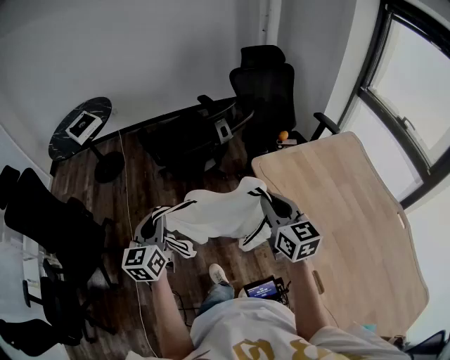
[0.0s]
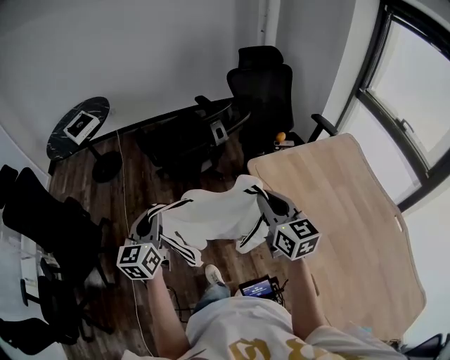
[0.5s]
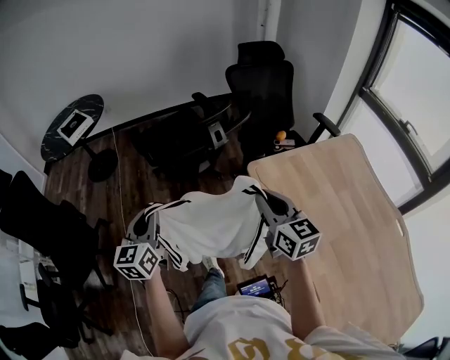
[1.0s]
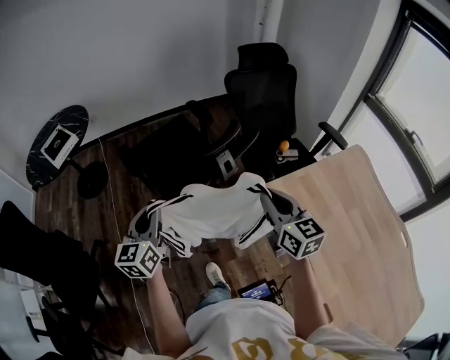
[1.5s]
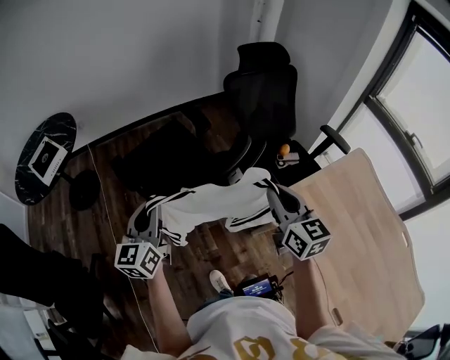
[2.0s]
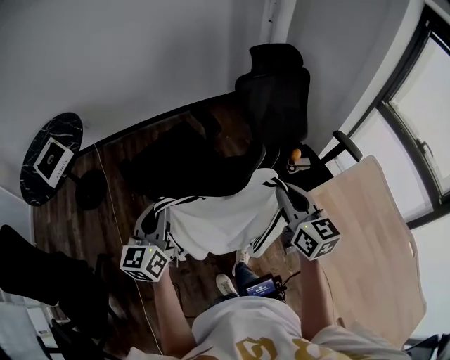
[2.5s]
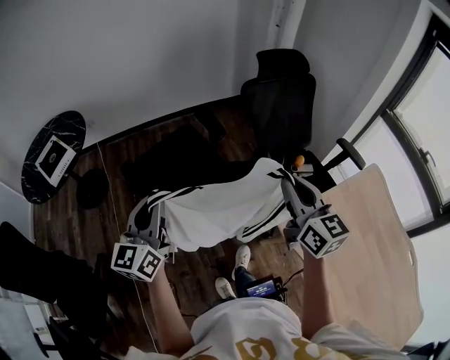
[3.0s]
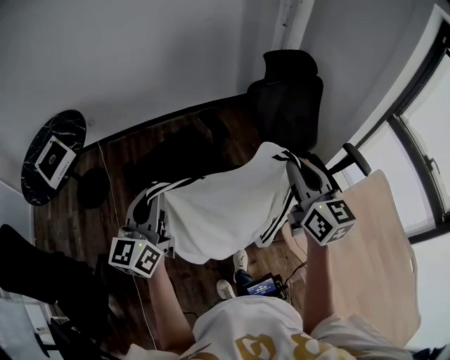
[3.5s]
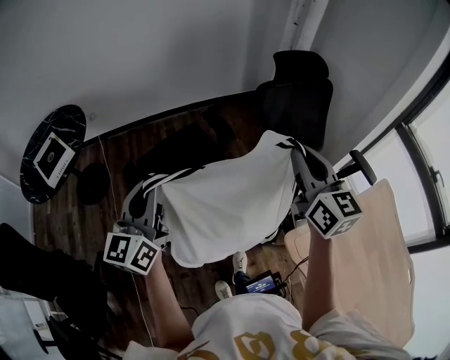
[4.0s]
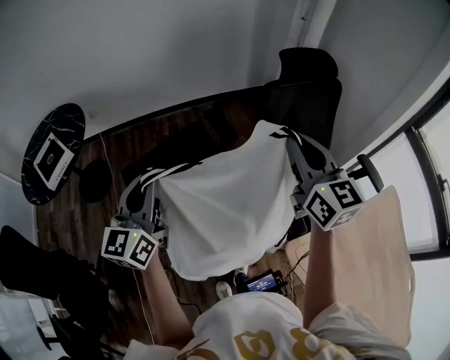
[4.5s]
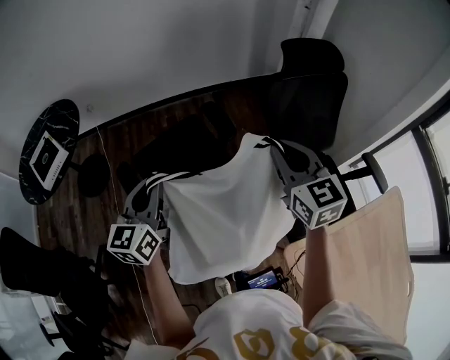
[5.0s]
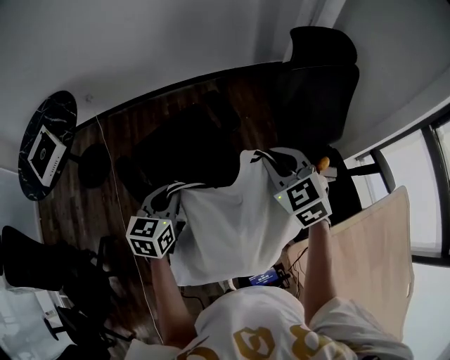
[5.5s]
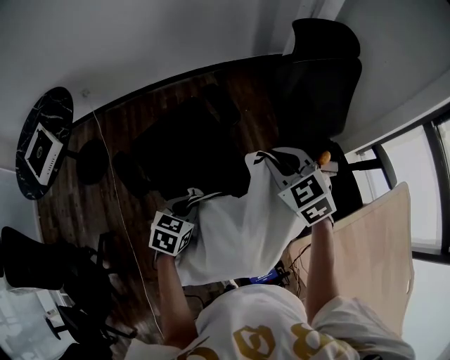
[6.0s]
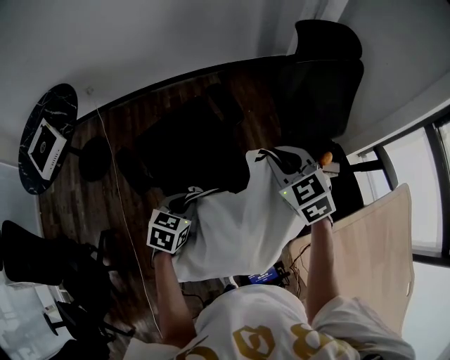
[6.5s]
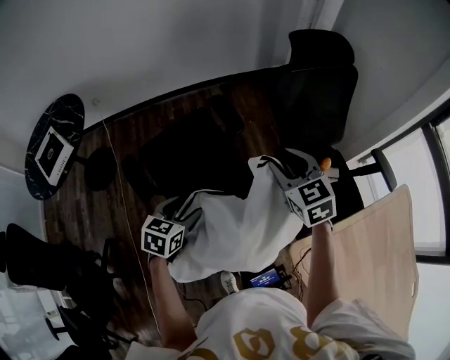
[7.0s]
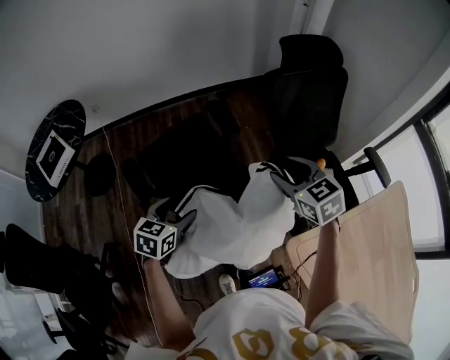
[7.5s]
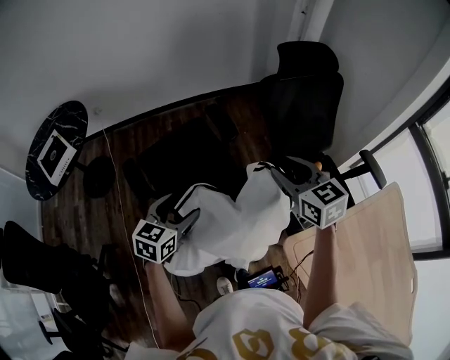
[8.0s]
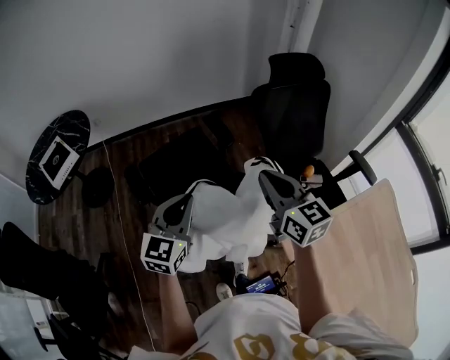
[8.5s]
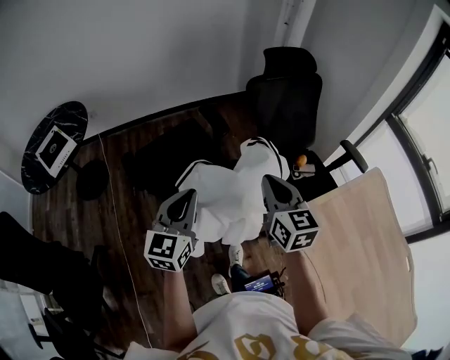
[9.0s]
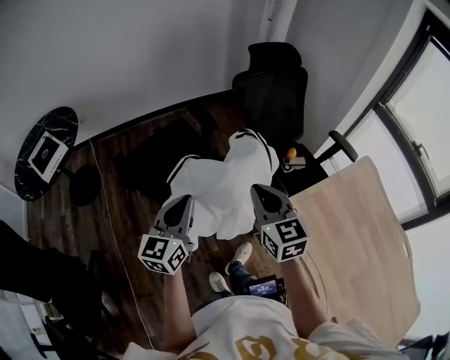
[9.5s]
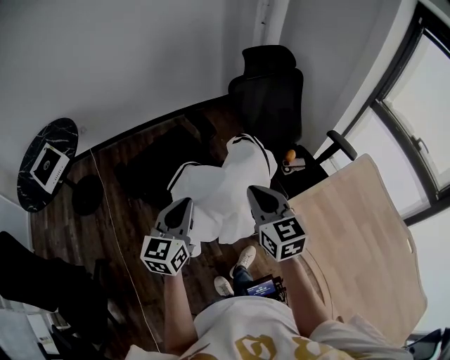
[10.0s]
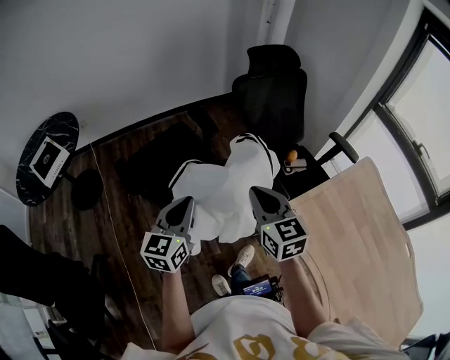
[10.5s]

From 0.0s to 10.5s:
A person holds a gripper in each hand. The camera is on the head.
From 0.0s to 2.0s: The two grippers go about 35 cm forward.
From 2.0s to 4.0s: Both grippers move forward and upward, approximately 20 cm.
From 4.0s to 6.5s: The right gripper is displaced downward and forward by approximately 25 cm, and tips its fingers downward by some 30 degrees. Meanwhile the left gripper is displaced downward by about 30 cm, and angles its fingers downward, by approximately 50 degrees.
From 6.5s to 8.5s: The left gripper travels upward and backward by roughly 20 cm, tips its fingers upward by about 40 degrees, and opens, then closes once more. The right gripper moves backward and upward, some 20 cm, turns by roughly 40 degrees, and opens, then closes again.
From 8.5s to 10.5s: The left gripper heads backward, covering some 10 cm. The right gripper moves backward, roughly 10 cm.

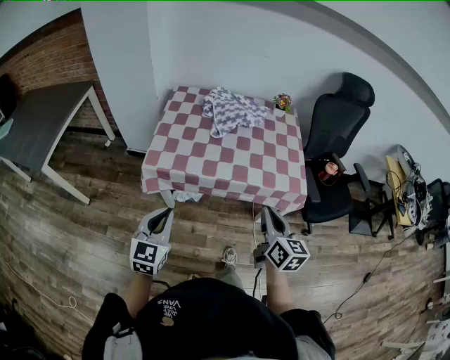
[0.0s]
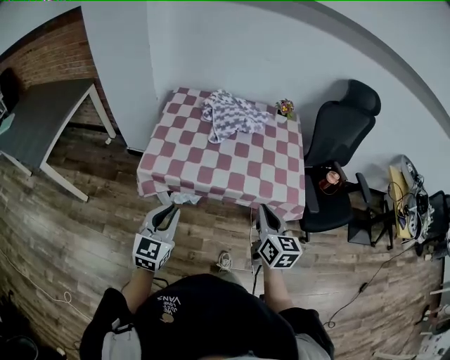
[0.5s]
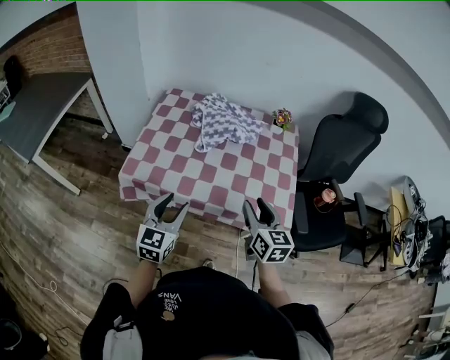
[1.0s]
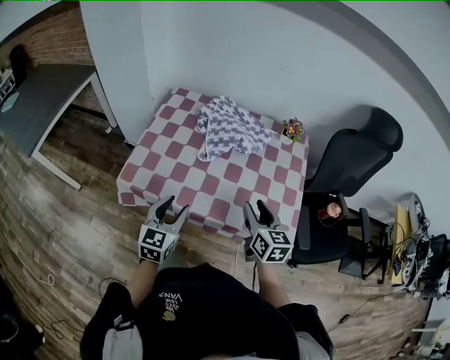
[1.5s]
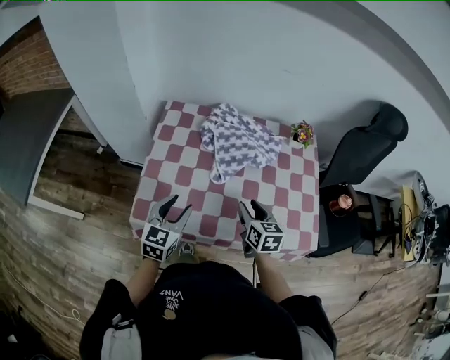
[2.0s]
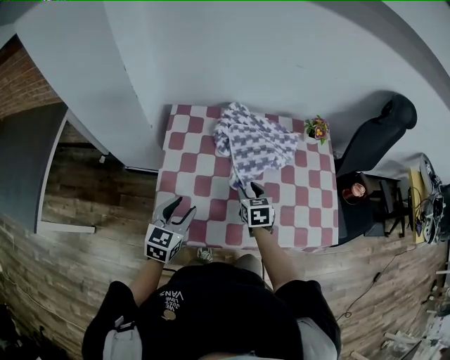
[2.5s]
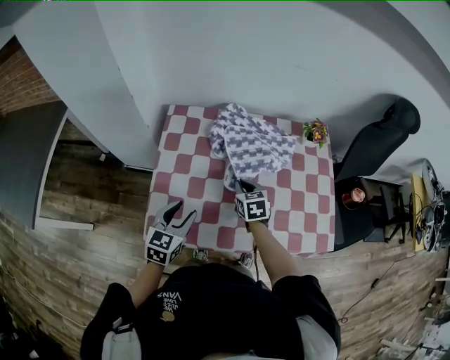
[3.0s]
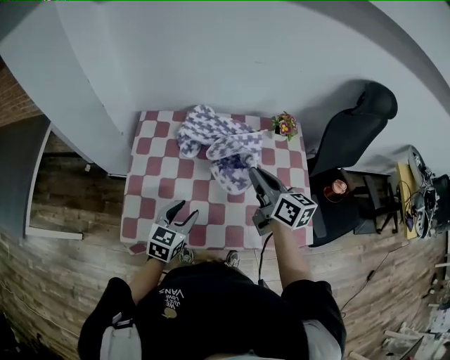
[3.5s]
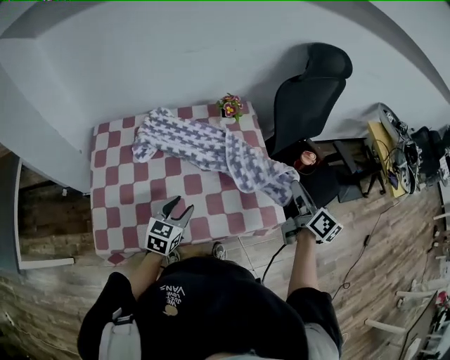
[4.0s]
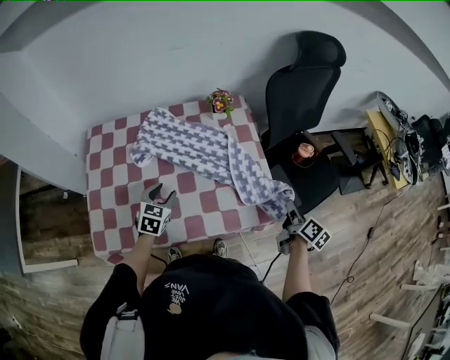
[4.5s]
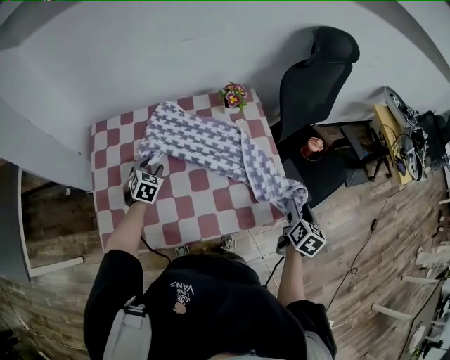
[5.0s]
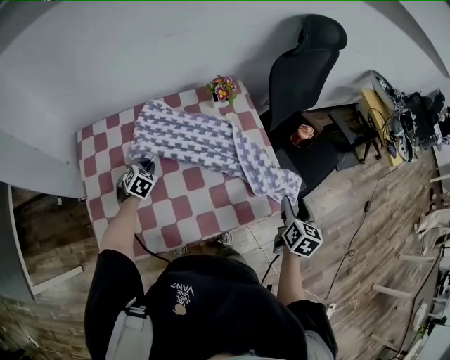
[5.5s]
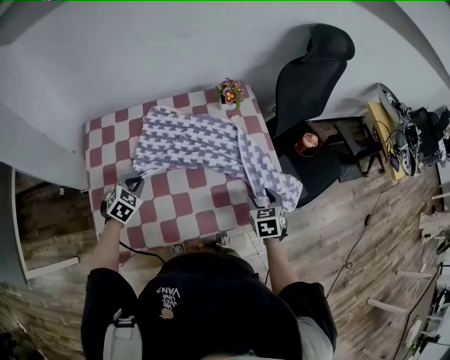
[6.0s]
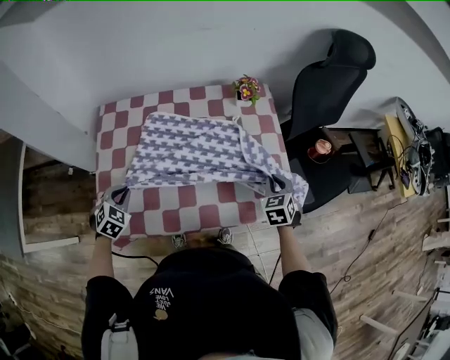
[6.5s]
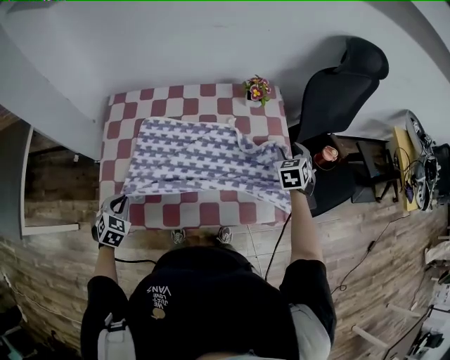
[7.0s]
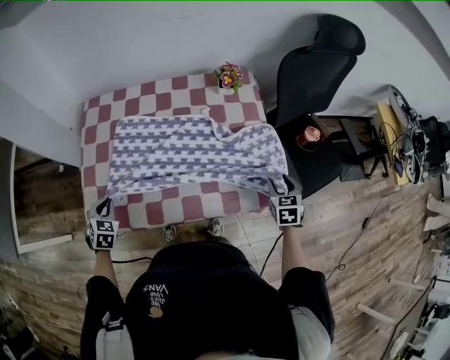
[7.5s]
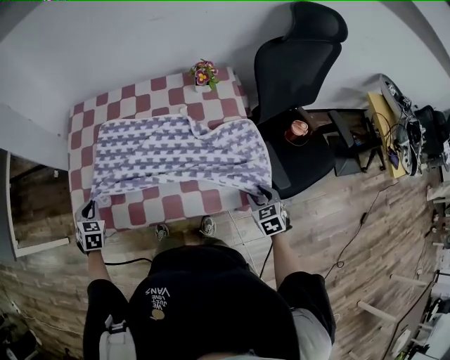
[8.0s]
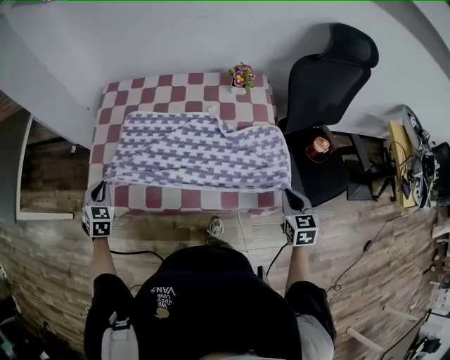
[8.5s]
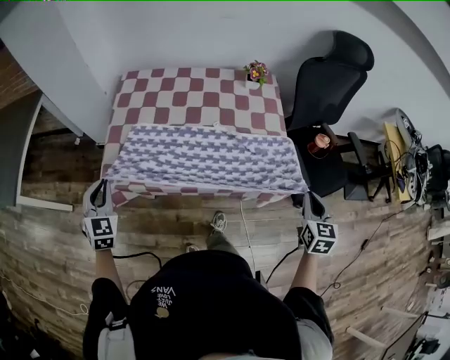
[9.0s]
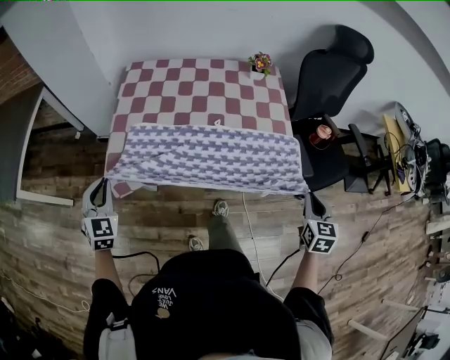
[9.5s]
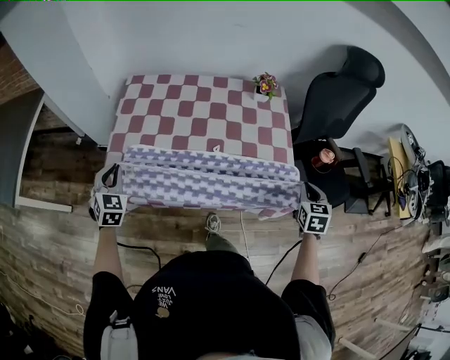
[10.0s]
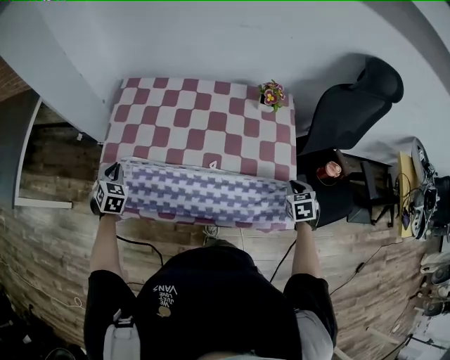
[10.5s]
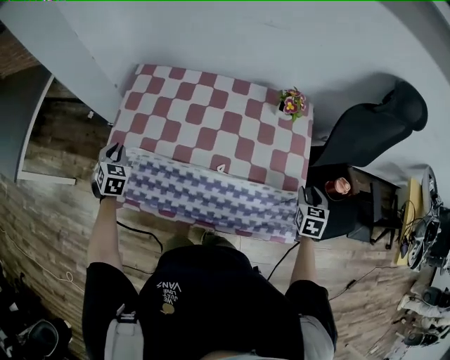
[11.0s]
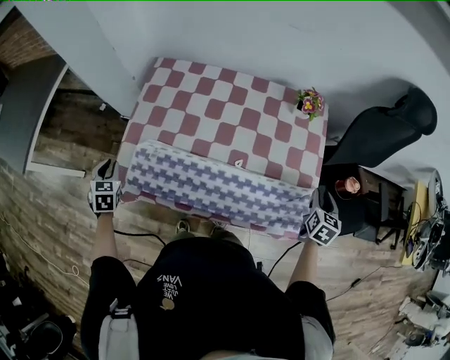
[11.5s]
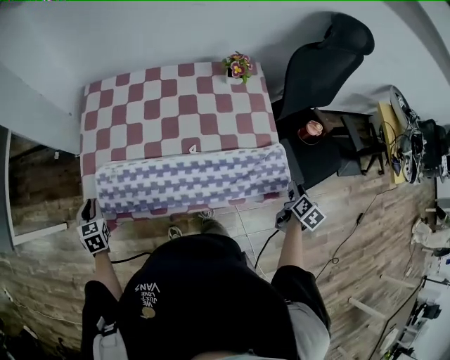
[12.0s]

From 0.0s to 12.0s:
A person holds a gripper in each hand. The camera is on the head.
From 0.0s to 2.0s: The two grippers go some 30 cm forward. The right gripper changes its angle by some 20 degrees, and opens. The left gripper opens its fingers.
From 2.0s to 4.0s: The right gripper heads to the right, covering about 35 cm, changes its angle by approximately 50 degrees, and closes its fingers. Meanwhile the left gripper travels to the right by roughly 20 cm, and changes its angle by about 20 degrees.
From 4.0s to 6.0s: The left gripper goes roughly 20 cm to the left, rotates about 40 degrees, and closes up; the right gripper swings up and down, about 20 cm each way, with 2 reversals, tilts its fingers some 40 degrees downward, and opens up.
From 6.0s to 8.0s: The left gripper shifts by about 15 cm, and changes its angle by approximately 40 degrees; the right gripper moves about 10 cm, and closes, then opens again.
From 8.0s to 10.0s: The left gripper shifts some 10 cm upward, and travels backward and back again, roughly 15 cm each way, while the right gripper is displaced upward by roughly 15 cm, and closes up.
From 10.0s to 12.0s: The left gripper goes approximately 10 cm downward and to the left, travels forward and back again, approximately 10 cm each way, and changes its angle by approximately 30 degrees, while the right gripper moves downward and to the right, some 10 cm, reaches roughly 15 cm forward, then returns, twists approximately 50 degrees clockwise, seen from behind, and opens.

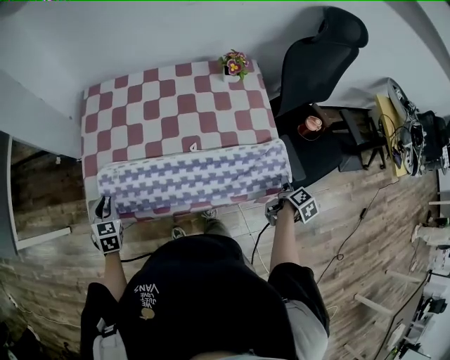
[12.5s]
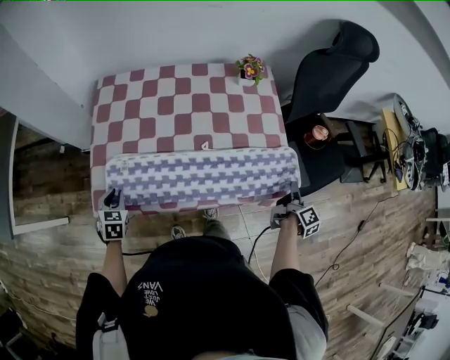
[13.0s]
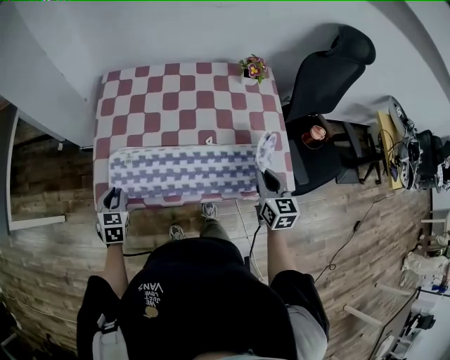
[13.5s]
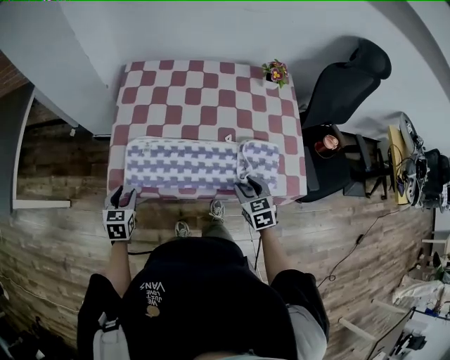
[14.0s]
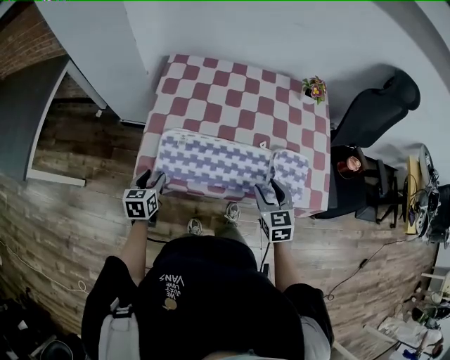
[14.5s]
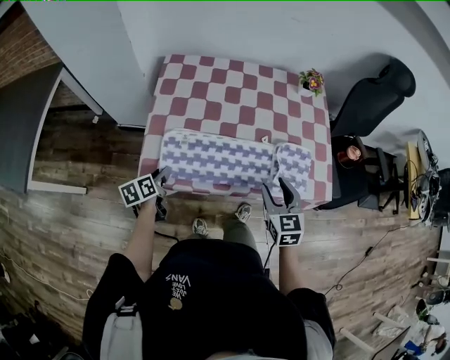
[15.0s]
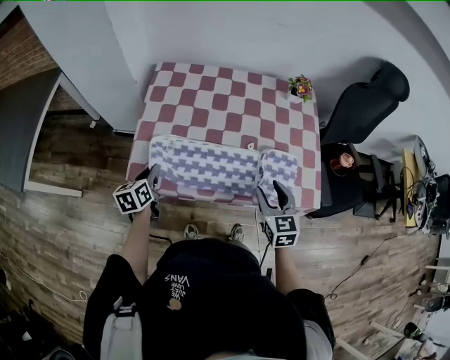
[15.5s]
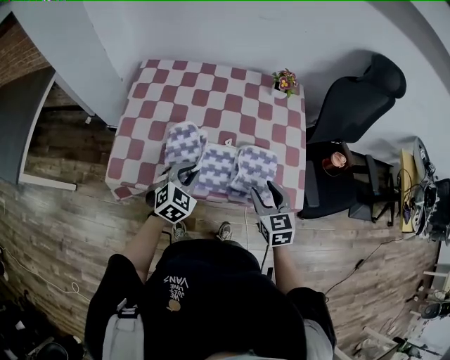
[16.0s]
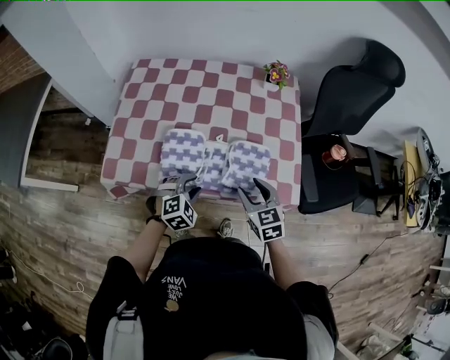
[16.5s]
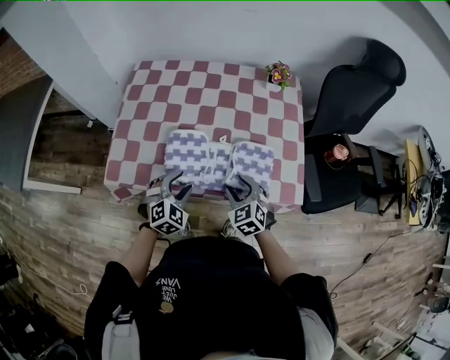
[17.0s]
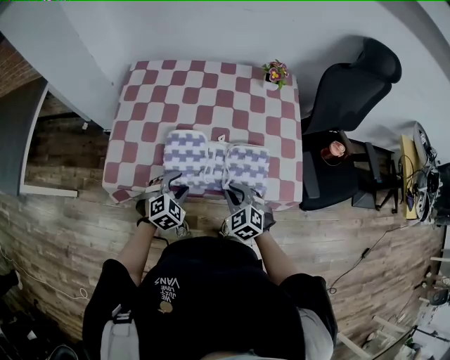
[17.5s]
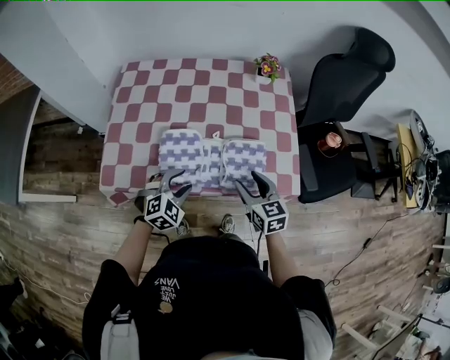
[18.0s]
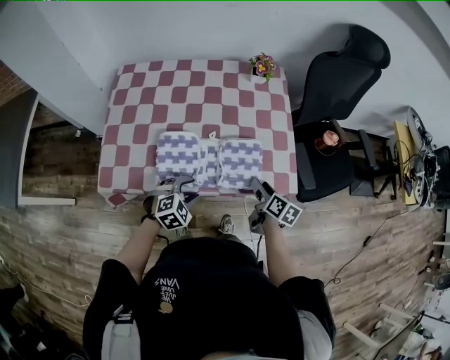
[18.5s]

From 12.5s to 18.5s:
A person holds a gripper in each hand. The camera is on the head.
From 12.5s to 14.5s: The right gripper shifts approximately 35 cm to the left, twists roughly 80 degrees counterclockwise, seen from behind, and closes, then opens again. Meanwhile the left gripper goes some 5 cm backward, rotates roughly 30 degrees, and opens its fingers.
From 14.5s to 16.5s: The left gripper is displaced to the right by some 30 cm, and rolls clockwise, seen from behind, by approximately 70 degrees. Meanwhile the right gripper travels to the right by roughly 10 cm.
From 16.5s to 18.5s: The right gripper travels to the right and downward by roughly 10 cm, rolls clockwise, seen from behind, by approximately 60 degrees, and closes, then reopens.
